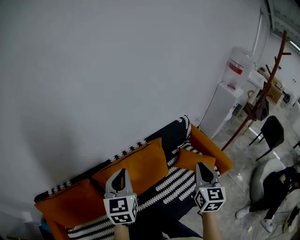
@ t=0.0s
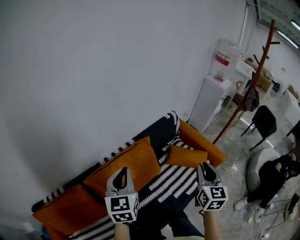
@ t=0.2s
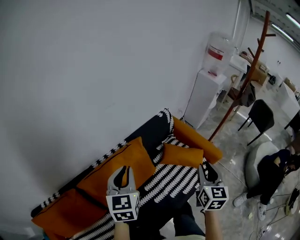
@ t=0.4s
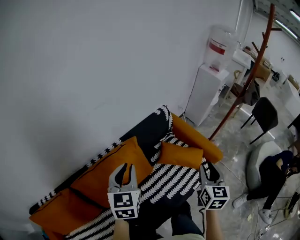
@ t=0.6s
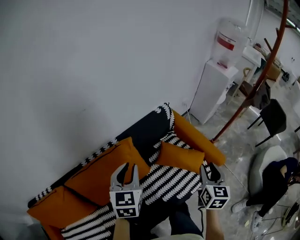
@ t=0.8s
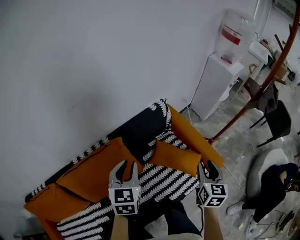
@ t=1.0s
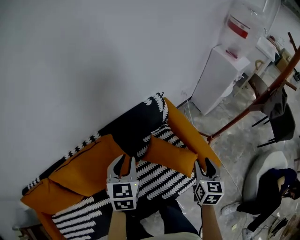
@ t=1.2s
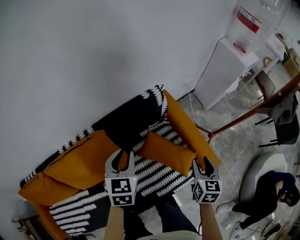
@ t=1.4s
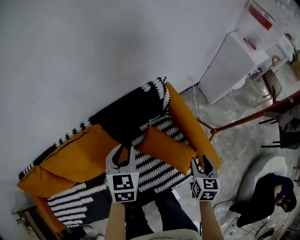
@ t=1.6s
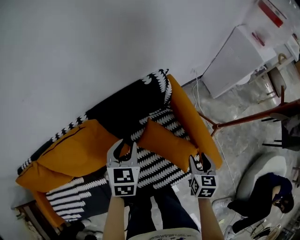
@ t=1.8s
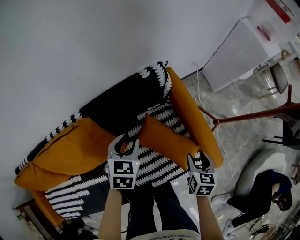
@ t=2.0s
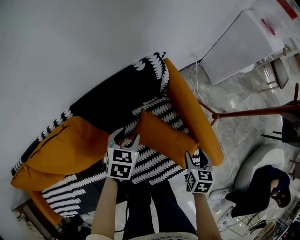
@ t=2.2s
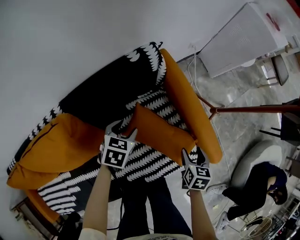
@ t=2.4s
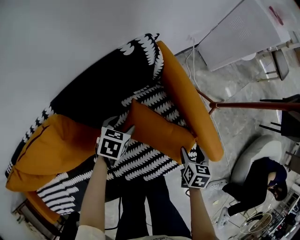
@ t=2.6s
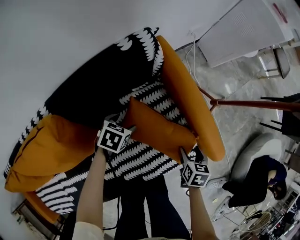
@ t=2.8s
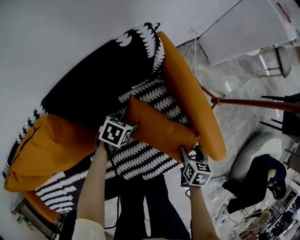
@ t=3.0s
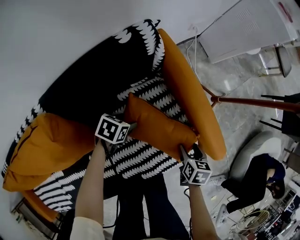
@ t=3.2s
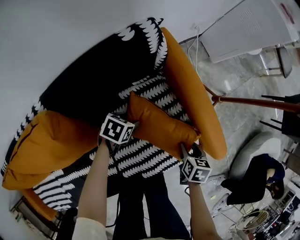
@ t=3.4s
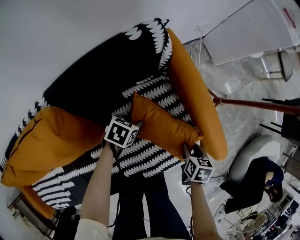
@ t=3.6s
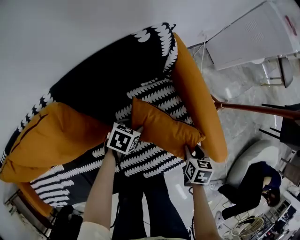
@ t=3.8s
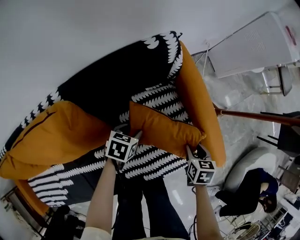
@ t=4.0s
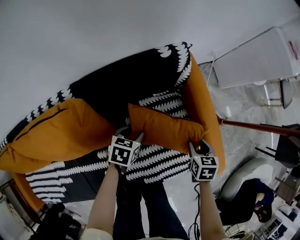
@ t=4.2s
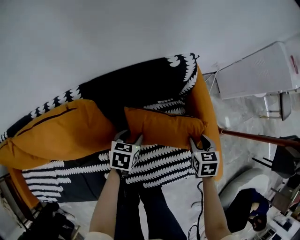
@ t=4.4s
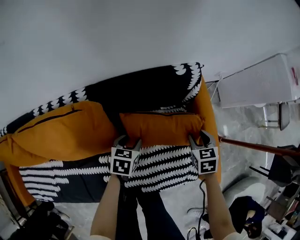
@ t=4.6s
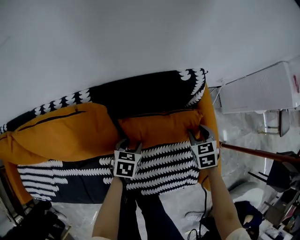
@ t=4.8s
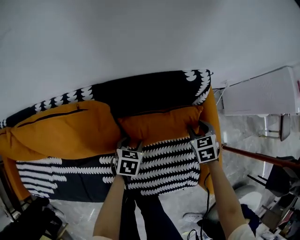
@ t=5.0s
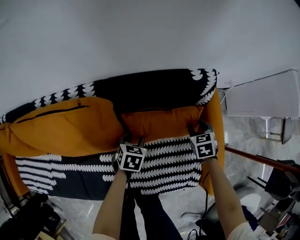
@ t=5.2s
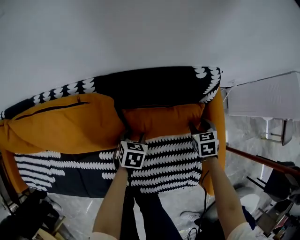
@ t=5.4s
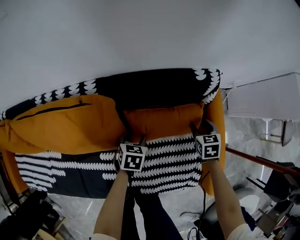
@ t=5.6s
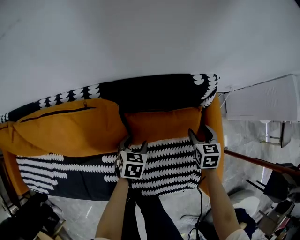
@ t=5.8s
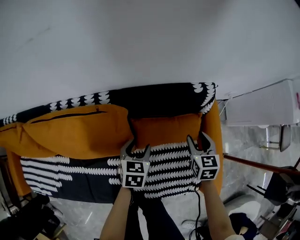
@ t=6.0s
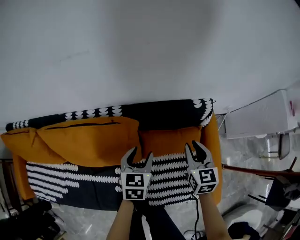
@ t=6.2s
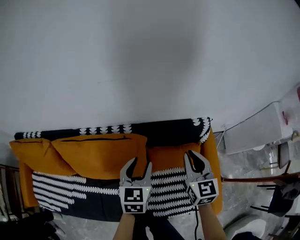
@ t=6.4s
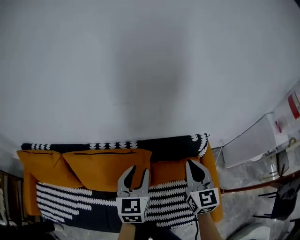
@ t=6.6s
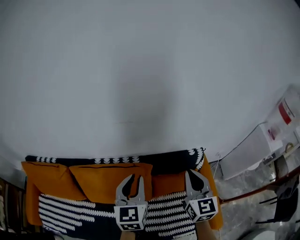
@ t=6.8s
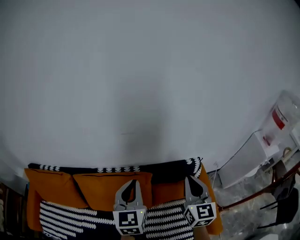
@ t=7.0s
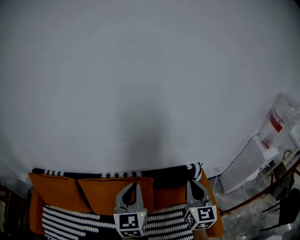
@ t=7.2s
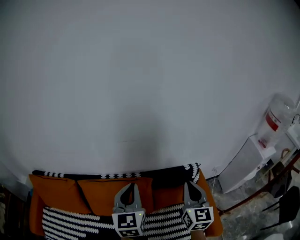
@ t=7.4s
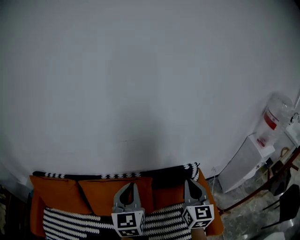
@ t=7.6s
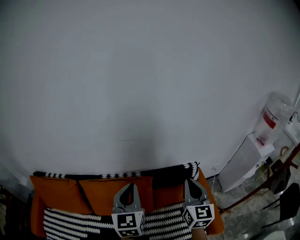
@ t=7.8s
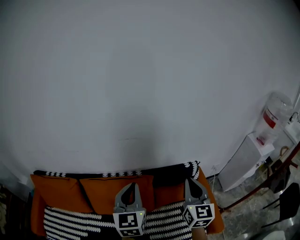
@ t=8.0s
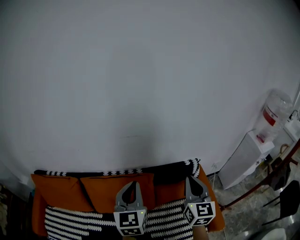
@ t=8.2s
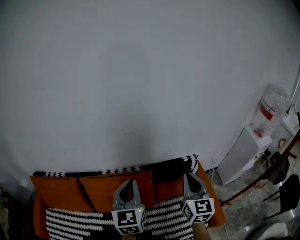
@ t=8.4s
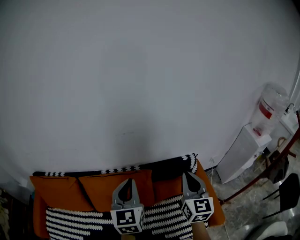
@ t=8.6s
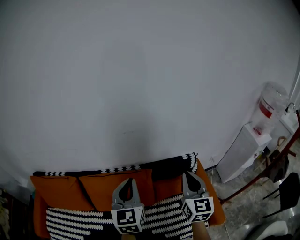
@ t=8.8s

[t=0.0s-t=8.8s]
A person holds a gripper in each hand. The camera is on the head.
t=0.0s to t=1.4s: The two grippers travel together, to the right and forward, approximately 40 cm. Both grippers move downward, some 20 cm. The left gripper changes its angle by about 20 degrees; the right gripper swivels roughly 20 degrees, and opens its fingers.
t=1.4s to t=3.0s: Both grippers travel together downward, roughly 35 cm. The right gripper rotates approximately 30 degrees. Meanwhile the left gripper swivels about 50 degrees, and opens up.
t=3.0s to t=4.4s: The left gripper ends up some 10 cm from where it was, changes its angle by approximately 30 degrees, and closes up; the right gripper ends up about 15 cm from where it was, changes its angle by about 30 degrees, and closes up.
t=4.4s to t=5.8s: The right gripper travels forward and to the left by roughly 15 cm, and opens up.
t=5.8s to t=7.4s: Both grippers move upward, about 50 cm. The left gripper angles its fingers upward, by roughly 50 degrees, and closes its fingers. The right gripper tips its fingers upward by about 50 degrees, and closes up.
t=7.4s to t=8.8s: There are only small adjustments of the grippers.

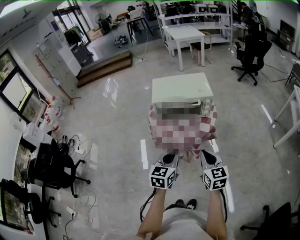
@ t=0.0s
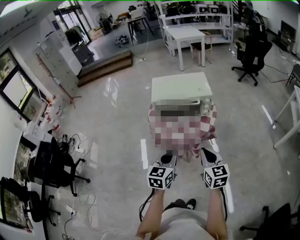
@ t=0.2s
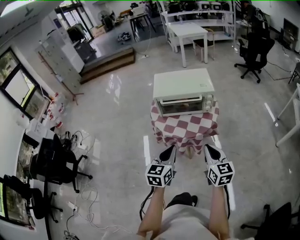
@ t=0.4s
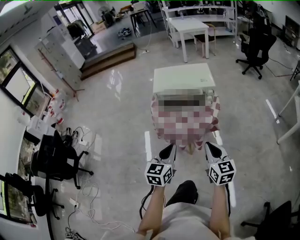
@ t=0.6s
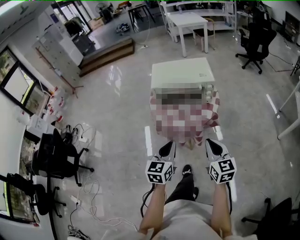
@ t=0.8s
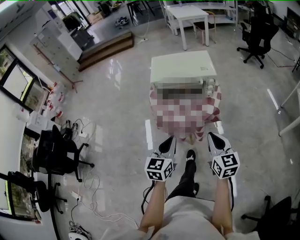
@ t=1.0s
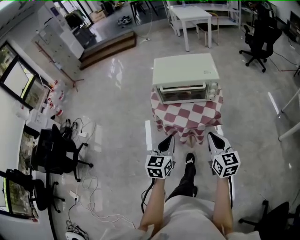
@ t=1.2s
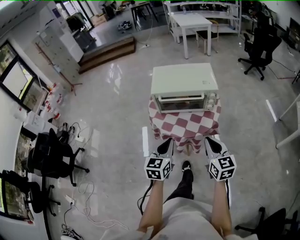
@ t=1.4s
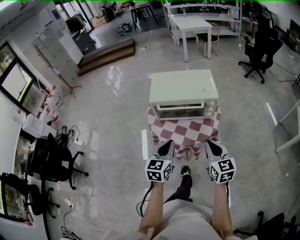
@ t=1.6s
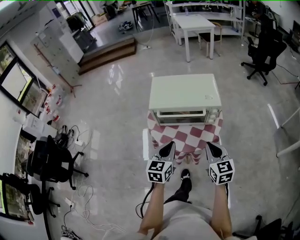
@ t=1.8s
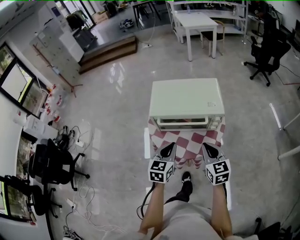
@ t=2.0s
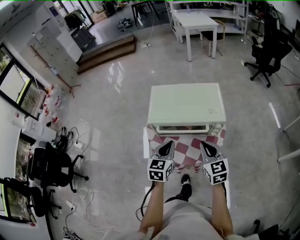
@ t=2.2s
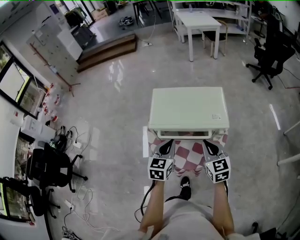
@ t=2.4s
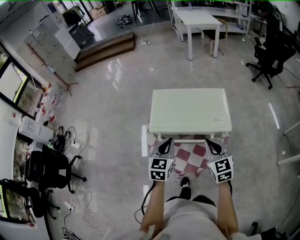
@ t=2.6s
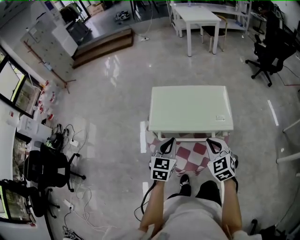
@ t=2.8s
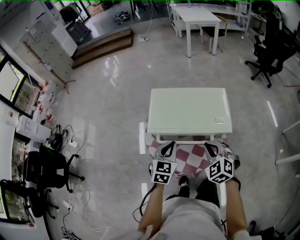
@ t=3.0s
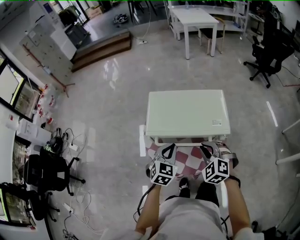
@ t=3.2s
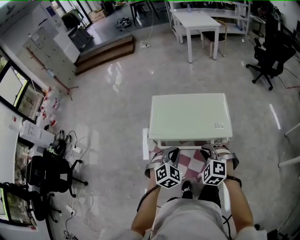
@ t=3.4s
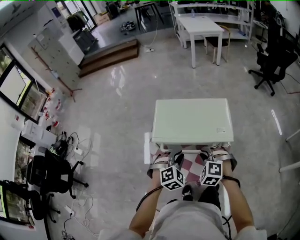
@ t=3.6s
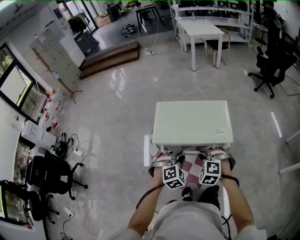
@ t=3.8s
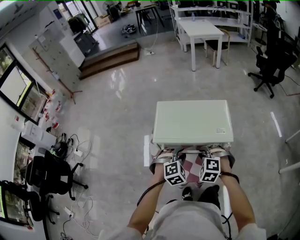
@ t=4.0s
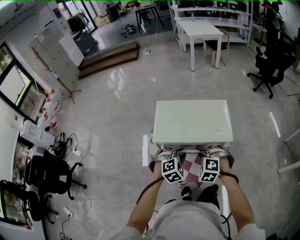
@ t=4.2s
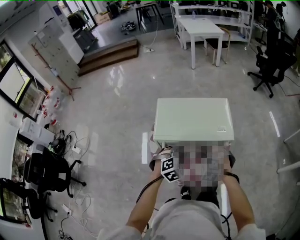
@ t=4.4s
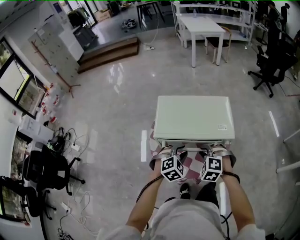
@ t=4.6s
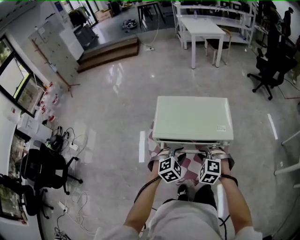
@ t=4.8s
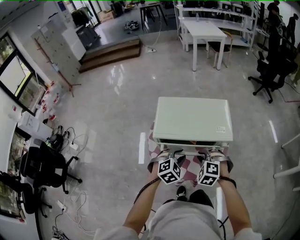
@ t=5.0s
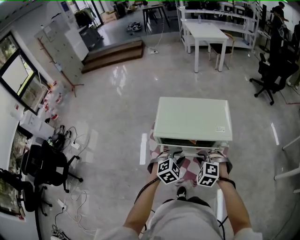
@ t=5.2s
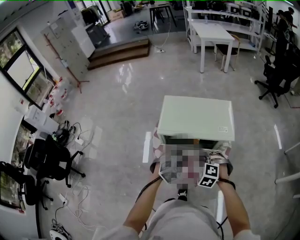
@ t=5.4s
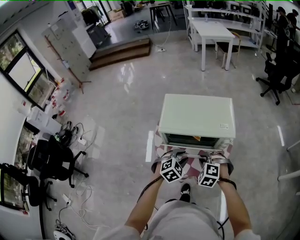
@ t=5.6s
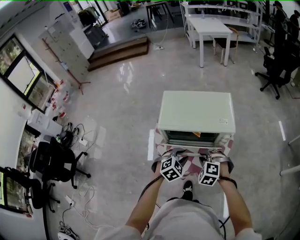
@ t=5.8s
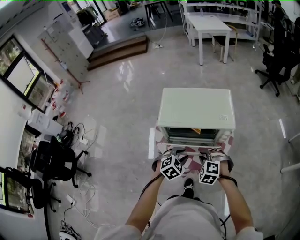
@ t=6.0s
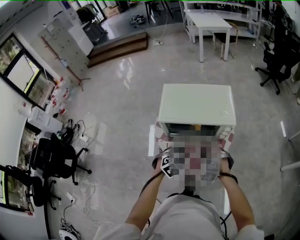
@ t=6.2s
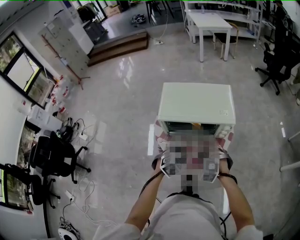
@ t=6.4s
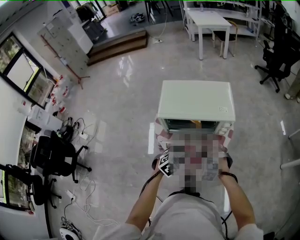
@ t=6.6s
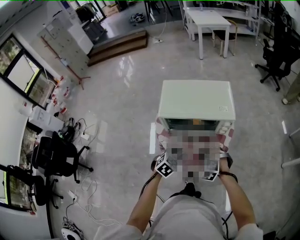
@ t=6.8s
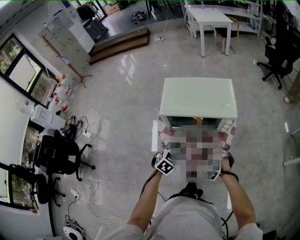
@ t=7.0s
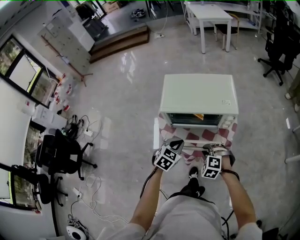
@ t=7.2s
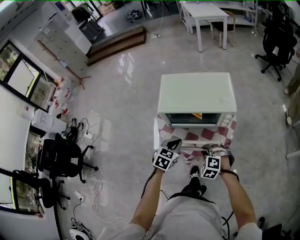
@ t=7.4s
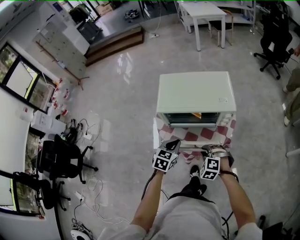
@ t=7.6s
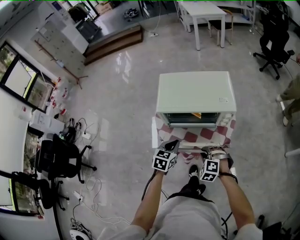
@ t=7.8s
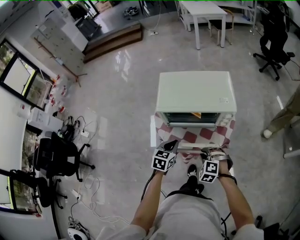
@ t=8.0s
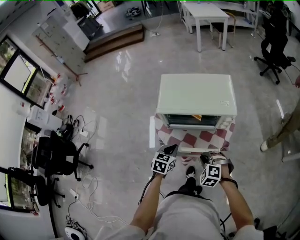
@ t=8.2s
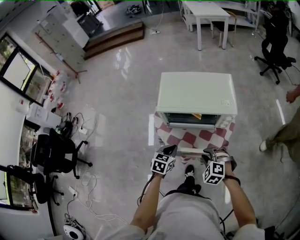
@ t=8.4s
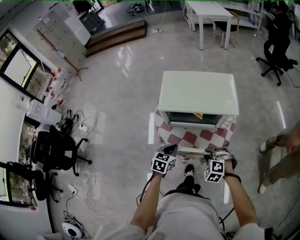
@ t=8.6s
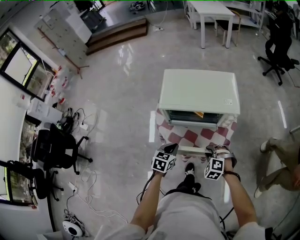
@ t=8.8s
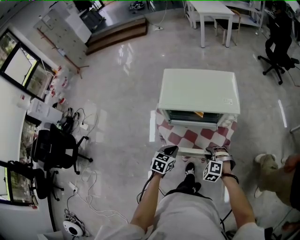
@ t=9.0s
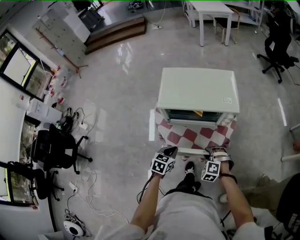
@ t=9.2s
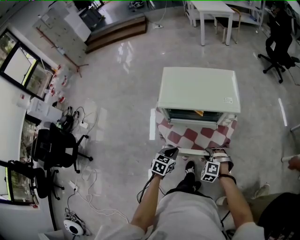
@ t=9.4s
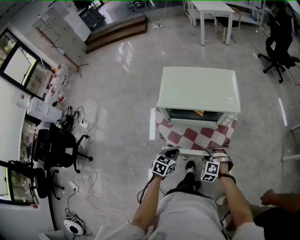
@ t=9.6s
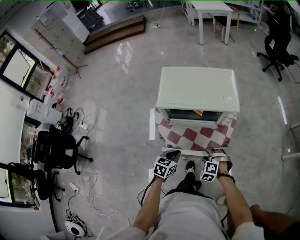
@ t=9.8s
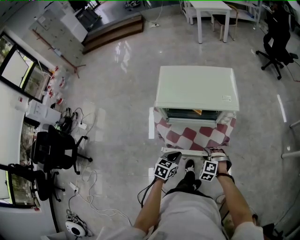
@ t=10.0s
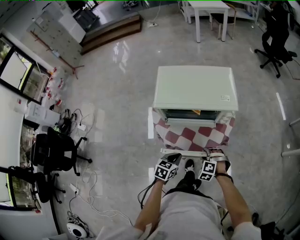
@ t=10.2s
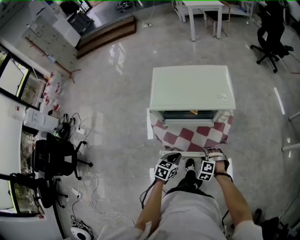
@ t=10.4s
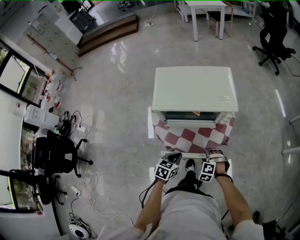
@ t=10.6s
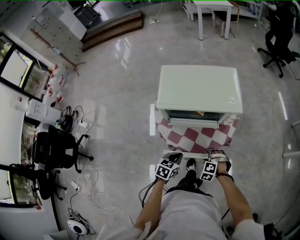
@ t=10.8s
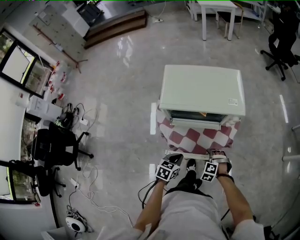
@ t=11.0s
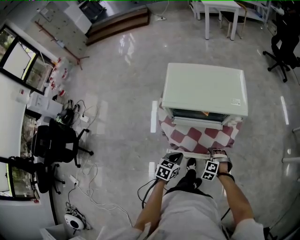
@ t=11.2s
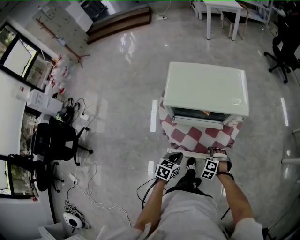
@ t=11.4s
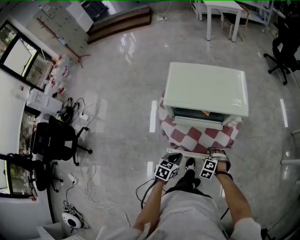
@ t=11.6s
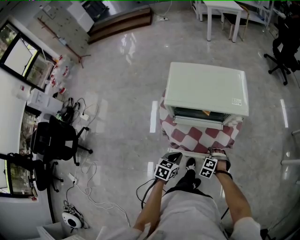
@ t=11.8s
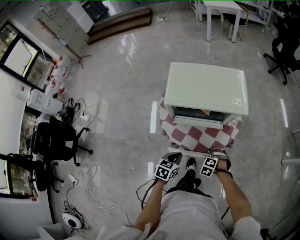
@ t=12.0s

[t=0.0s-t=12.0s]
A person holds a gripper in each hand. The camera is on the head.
t=0.0s to t=1.6s: The two grippers go approximately 10 cm forward.
t=1.6s to t=3.0s: The grippers both shift forward by about 20 cm. The right gripper rolls counterclockwise, seen from behind, by approximately 40 degrees.
t=3.0s to t=4.4s: The right gripper ends up some 5 cm from where it was, and swivels approximately 30 degrees; the left gripper shifts by about 5 cm, swivels roughly 50 degrees, and opens its fingers.
t=4.4s to t=6.0s: The two grippers go approximately 10 cm backward.
t=6.0s to t=7.6s: The right gripper changes place by some 5 cm. The left gripper moves approximately 5 cm, rotates about 30 degrees, and closes.
t=7.6s to t=9.0s: The left gripper is displaced downward by about 5 cm.
t=9.0s to t=10.4s: The left gripper ends up some 5 cm from where it was; the right gripper moves downward, roughly 5 cm.
t=10.4s to t=12.0s: The right gripper heads downward, covering roughly 5 cm.

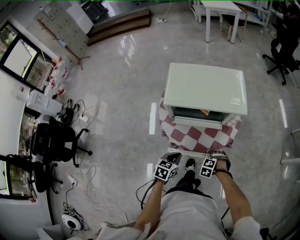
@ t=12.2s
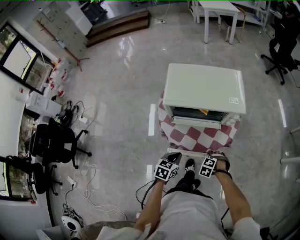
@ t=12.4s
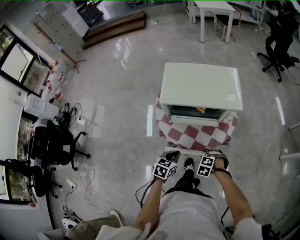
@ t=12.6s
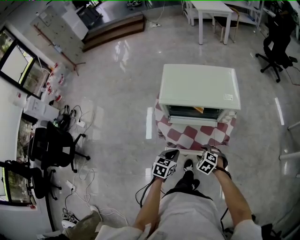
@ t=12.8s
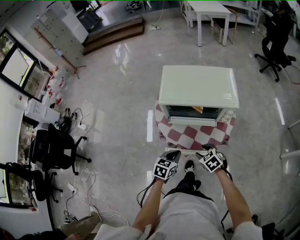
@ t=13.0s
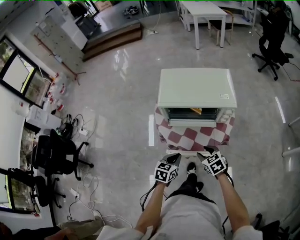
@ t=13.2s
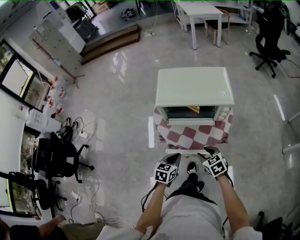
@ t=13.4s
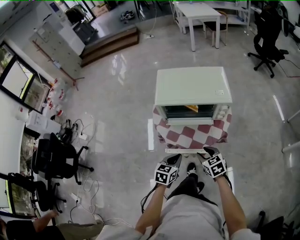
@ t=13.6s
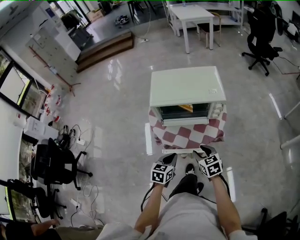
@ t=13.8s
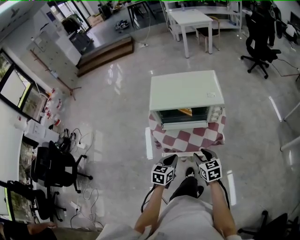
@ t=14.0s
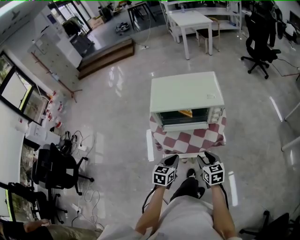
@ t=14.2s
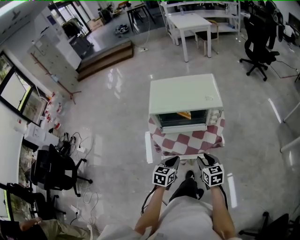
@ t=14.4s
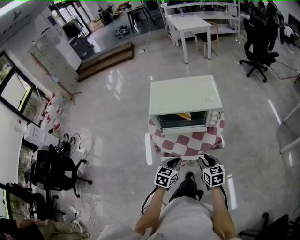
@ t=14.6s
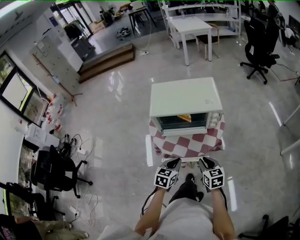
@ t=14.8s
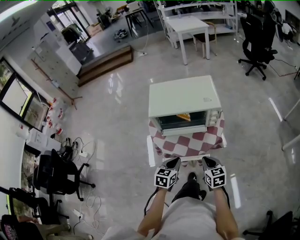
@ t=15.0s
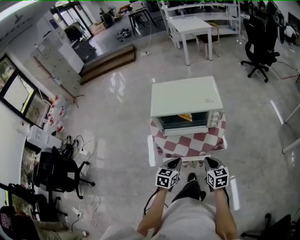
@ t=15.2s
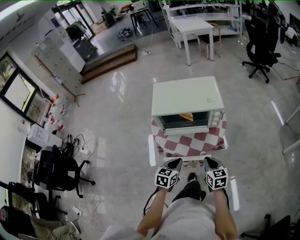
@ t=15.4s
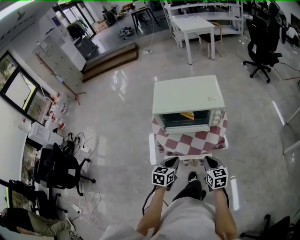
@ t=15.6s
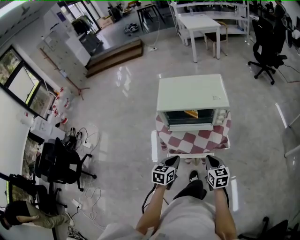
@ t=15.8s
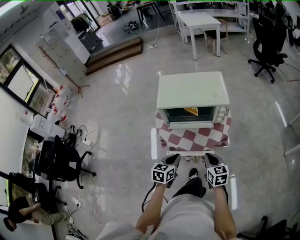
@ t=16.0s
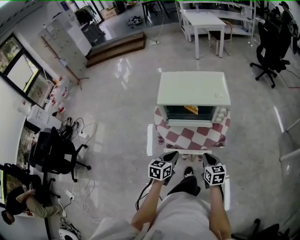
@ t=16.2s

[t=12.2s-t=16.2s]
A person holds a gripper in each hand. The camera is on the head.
t=12.2s to t=13.6s: The right gripper heads upward, covering approximately 20 cm, and tilts its fingers approximately 40 degrees upward. The left gripper moves roughly 5 cm.
t=13.6s to t=14.8s: The right gripper ends up approximately 5 cm from where it was, and rotates approximately 20 degrees.
t=14.8s to t=16.2s: The grippers move only a little.
